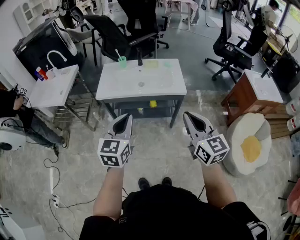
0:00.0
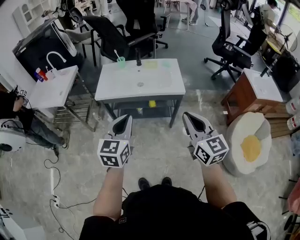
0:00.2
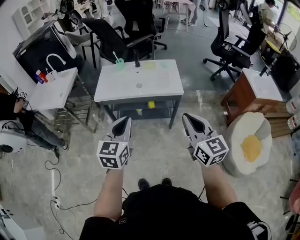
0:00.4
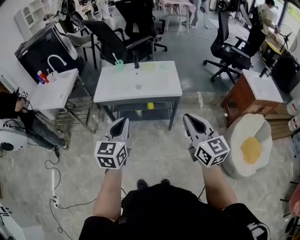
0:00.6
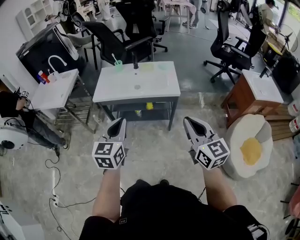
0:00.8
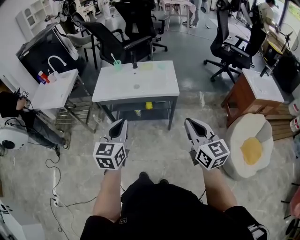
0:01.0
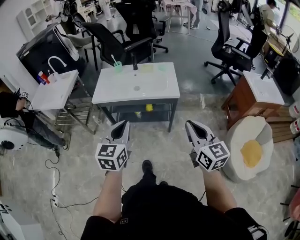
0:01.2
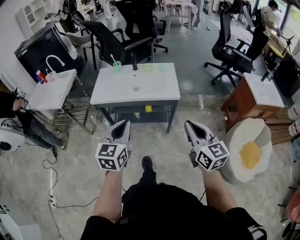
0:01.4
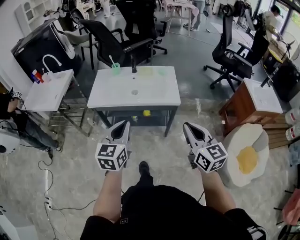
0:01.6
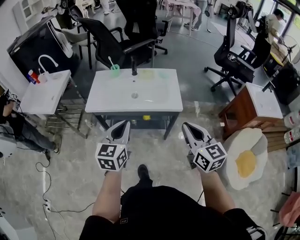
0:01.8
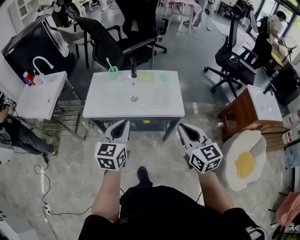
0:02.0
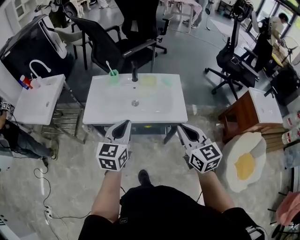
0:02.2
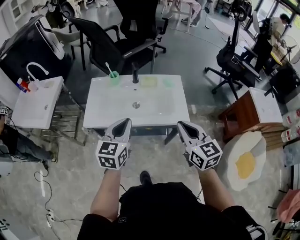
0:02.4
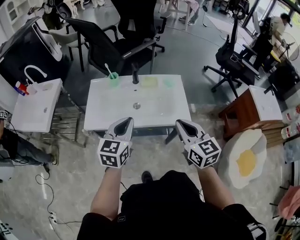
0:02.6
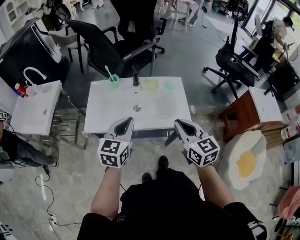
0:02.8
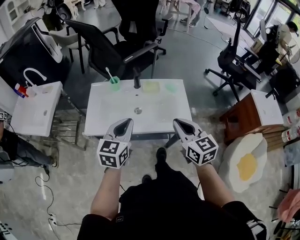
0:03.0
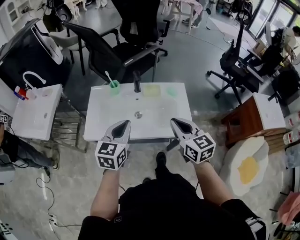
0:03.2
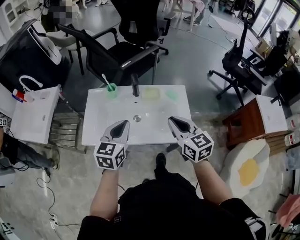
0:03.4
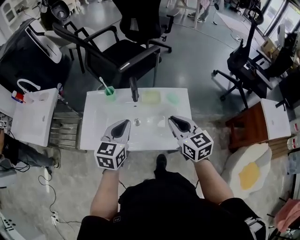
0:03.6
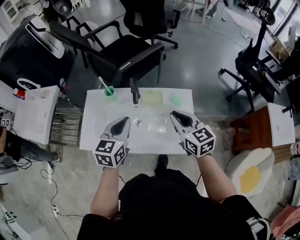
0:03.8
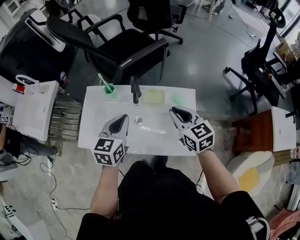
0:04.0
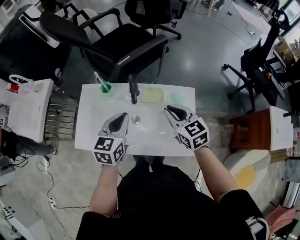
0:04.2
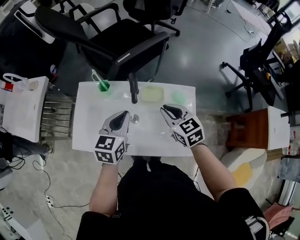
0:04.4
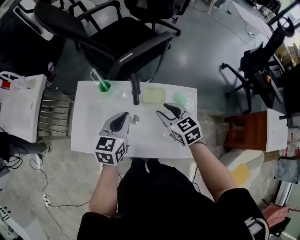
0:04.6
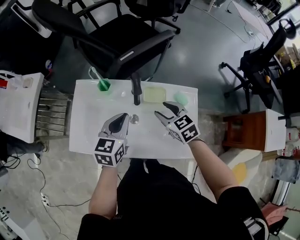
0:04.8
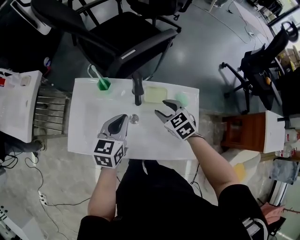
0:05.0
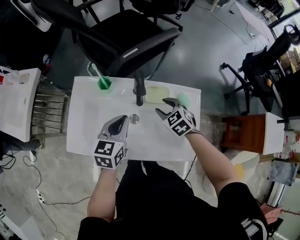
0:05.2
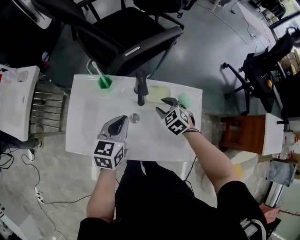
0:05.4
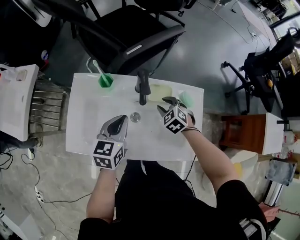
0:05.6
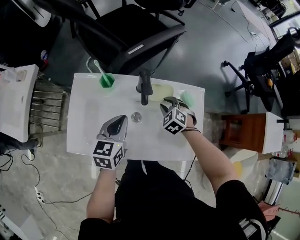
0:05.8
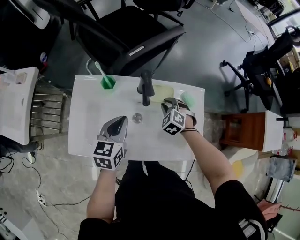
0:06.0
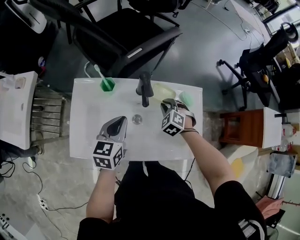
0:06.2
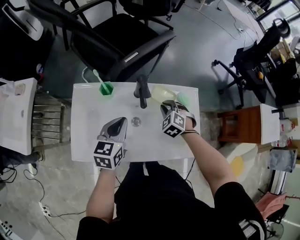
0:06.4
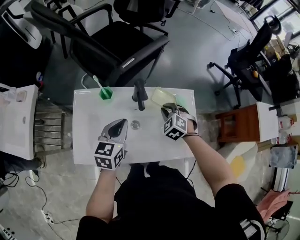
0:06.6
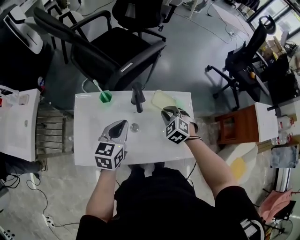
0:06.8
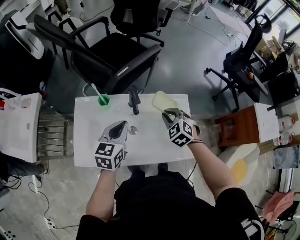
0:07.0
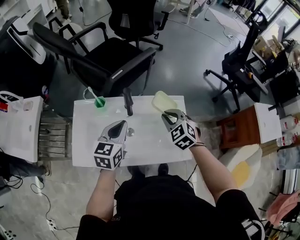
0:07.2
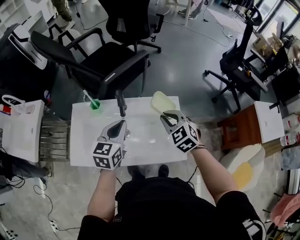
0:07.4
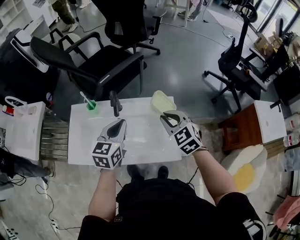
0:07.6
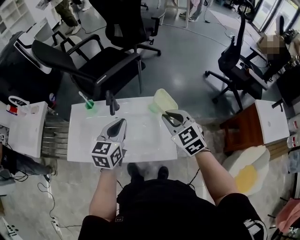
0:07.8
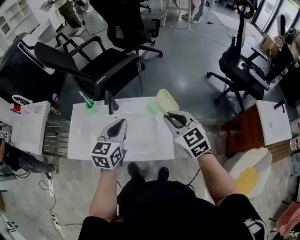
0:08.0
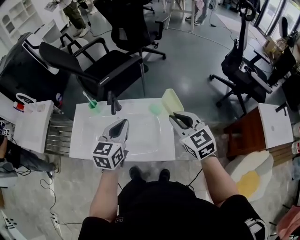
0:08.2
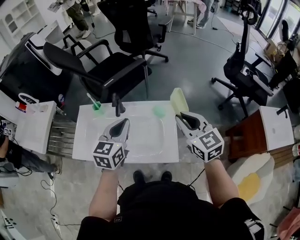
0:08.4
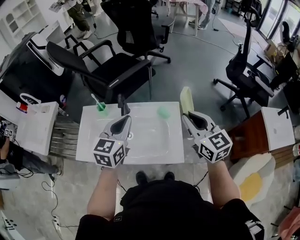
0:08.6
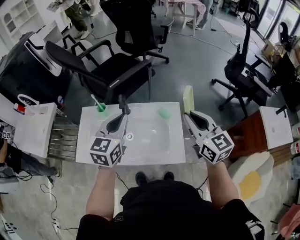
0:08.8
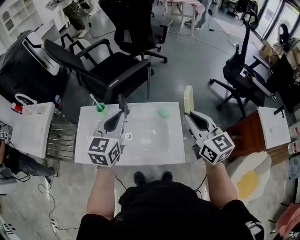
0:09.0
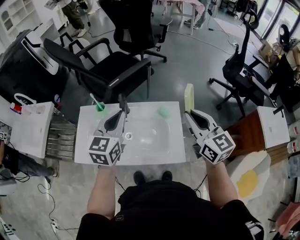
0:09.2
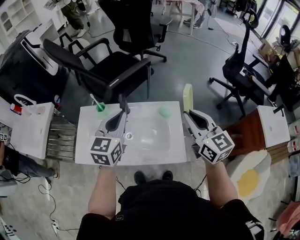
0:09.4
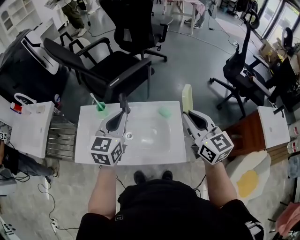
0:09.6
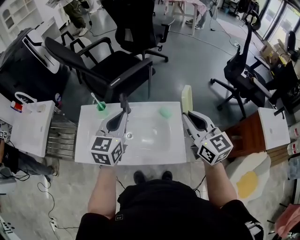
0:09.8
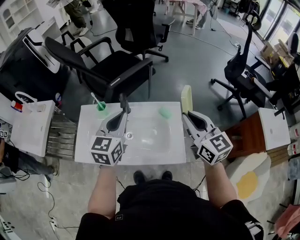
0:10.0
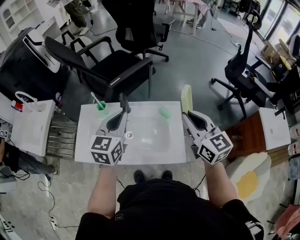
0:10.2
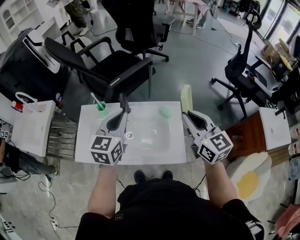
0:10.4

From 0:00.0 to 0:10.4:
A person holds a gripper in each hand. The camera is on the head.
From 0:00.0 to 0:01.4: Both grippers travel together to the right, roughly 5 cm.
From 0:01.4 to 0:03.0: Both grippers move forward, some 30 cm.
From 0:03.0 to 0:04.4: The left gripper goes some 20 cm forward, while the right gripper is displaced forward and downward by approximately 30 cm, and swivels some 20 degrees.
From 0:04.4 to 0:06.0: The left gripper moves downward and to the left, some 10 cm. The right gripper heads downward, covering roughly 20 cm, turns by roughly 50 degrees, and opens up.
From 0:06.0 to 0:07.4: The left gripper travels upward and to the right by some 15 cm. Meanwhile the right gripper goes roughly 20 cm upward, and rotates approximately 30 degrees.
From 0:07.4 to 0:09.0: The right gripper moves upward and to the right, some 20 cm, and angles its fingers upward, by approximately 30 degrees. Meanwhile the left gripper heads upward, covering about 10 cm.
From 0:09.0 to 0:10.4: There are only small adjustments of the grippers.

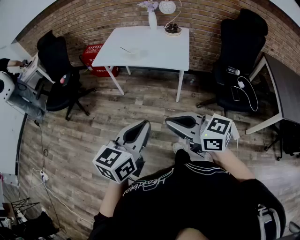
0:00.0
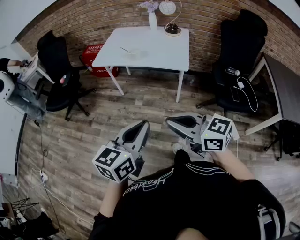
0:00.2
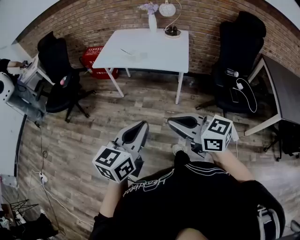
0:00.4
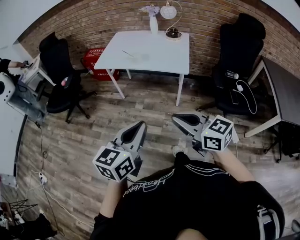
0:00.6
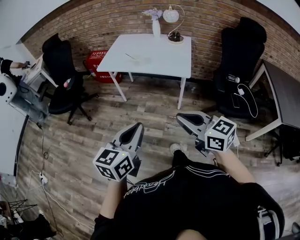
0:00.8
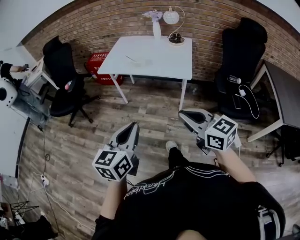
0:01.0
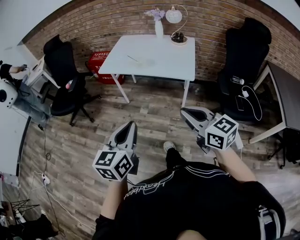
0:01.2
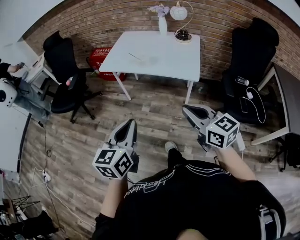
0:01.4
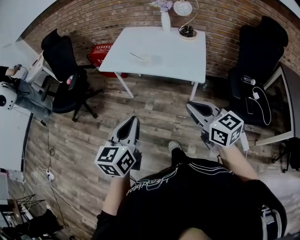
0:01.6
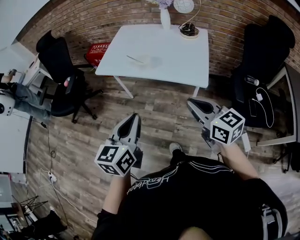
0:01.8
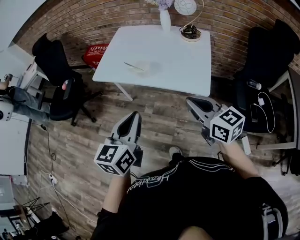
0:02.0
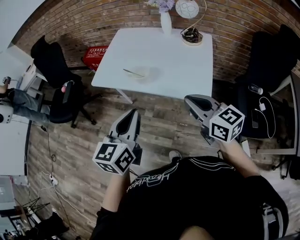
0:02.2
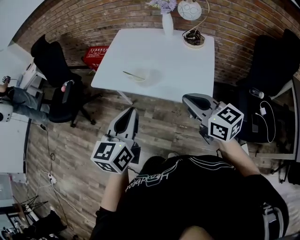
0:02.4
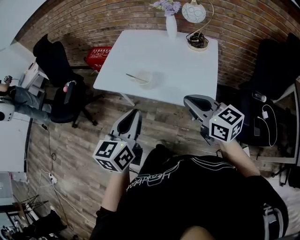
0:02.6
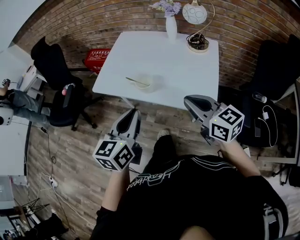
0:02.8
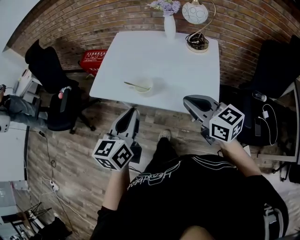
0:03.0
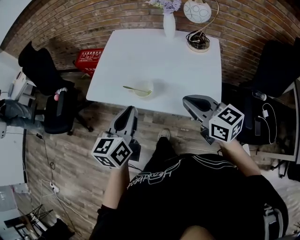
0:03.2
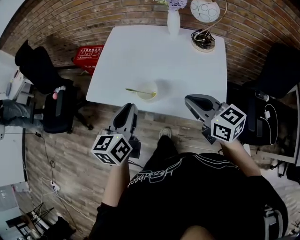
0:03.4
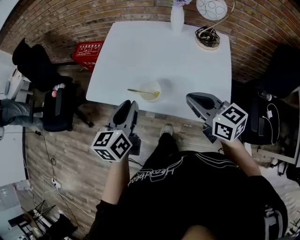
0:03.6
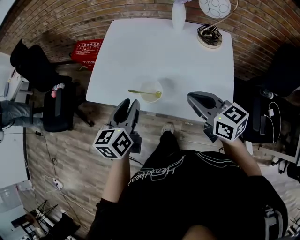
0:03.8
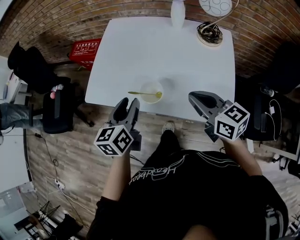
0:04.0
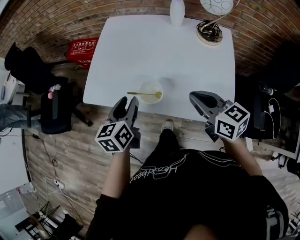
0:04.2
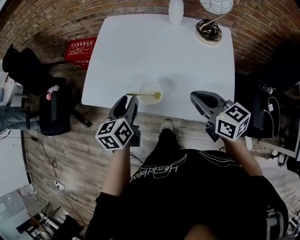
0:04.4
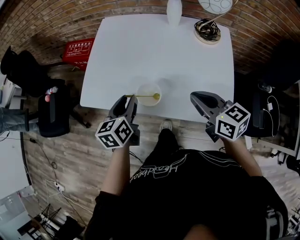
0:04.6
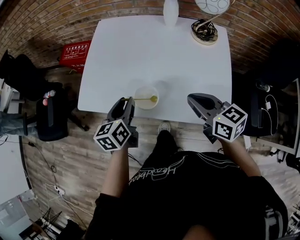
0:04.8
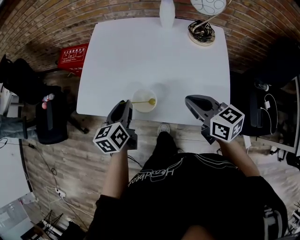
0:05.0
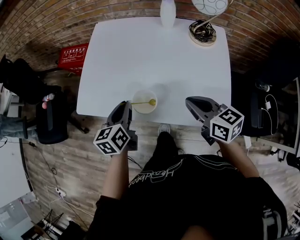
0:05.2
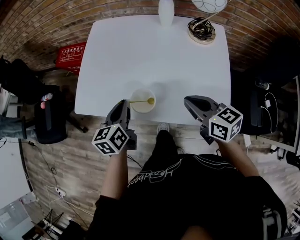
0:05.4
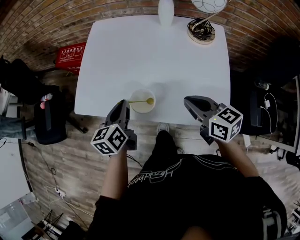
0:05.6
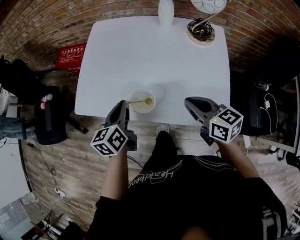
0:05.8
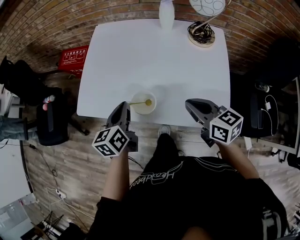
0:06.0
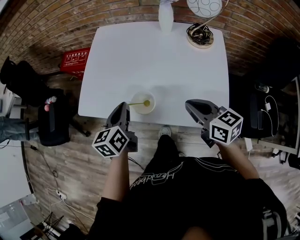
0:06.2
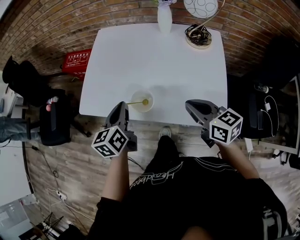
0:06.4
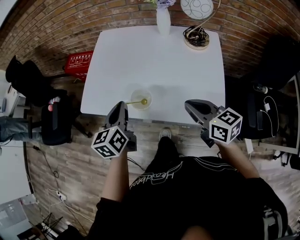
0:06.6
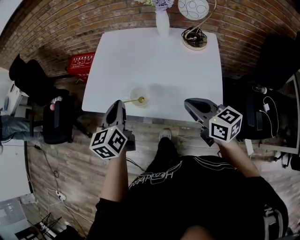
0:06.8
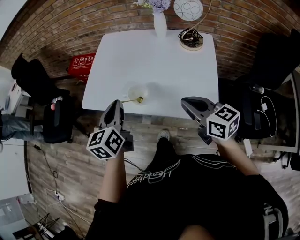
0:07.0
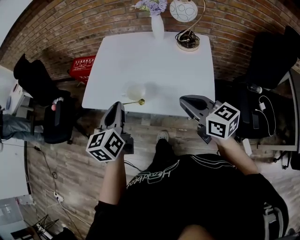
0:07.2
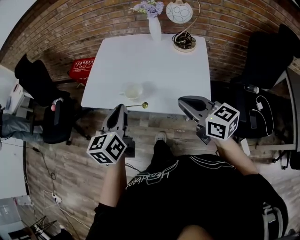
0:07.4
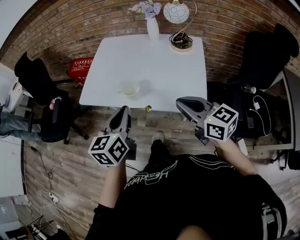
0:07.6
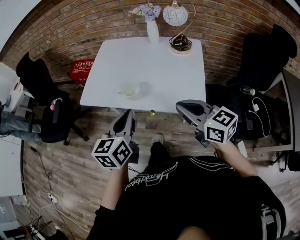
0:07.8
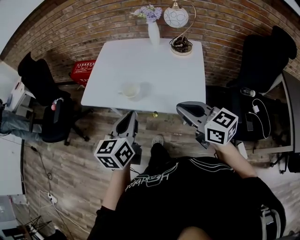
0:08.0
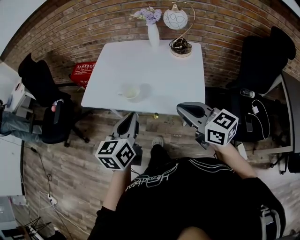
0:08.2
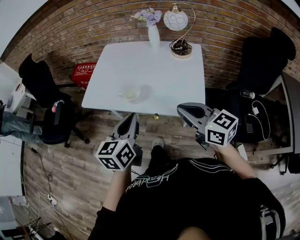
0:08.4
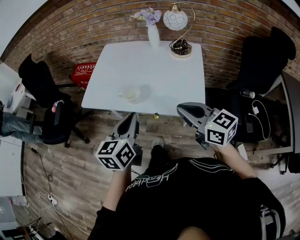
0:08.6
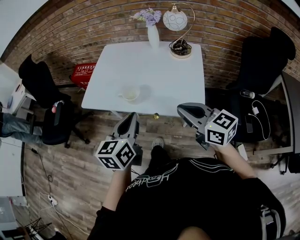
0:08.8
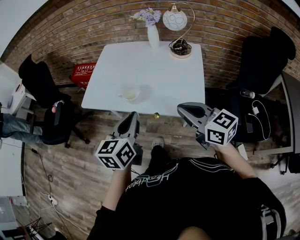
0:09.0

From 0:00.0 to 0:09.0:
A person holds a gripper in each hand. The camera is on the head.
From 0:00.0 to 0:01.6: The left gripper heads forward, covering approximately 15 cm. The right gripper goes roughly 20 cm forward and to the right.
From 0:01.6 to 0:03.0: Both grippers move forward, roughly 30 cm.
From 0:03.0 to 0:04.4: The right gripper shifts roughly 15 cm forward and downward. The left gripper heads forward and downward, covering approximately 25 cm, and opens up.
From 0:04.4 to 0:06.0: The left gripper closes its fingers.
From 0:06.0 to 0:07.6: The two grippers go some 20 cm backward and upward.
From 0:07.6 to 0:09.0: The grippers stay close to where they were, moving slightly.

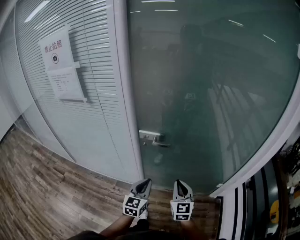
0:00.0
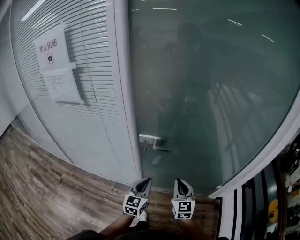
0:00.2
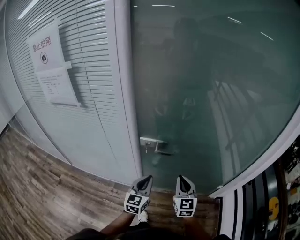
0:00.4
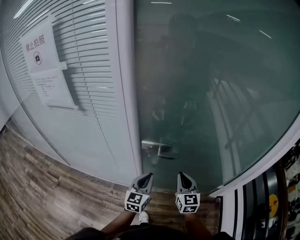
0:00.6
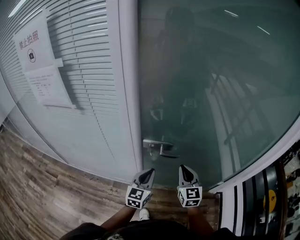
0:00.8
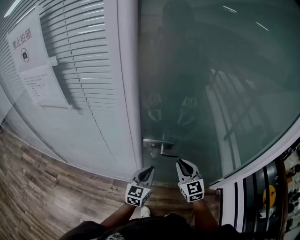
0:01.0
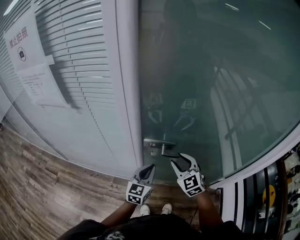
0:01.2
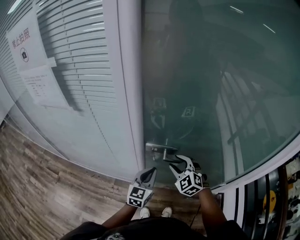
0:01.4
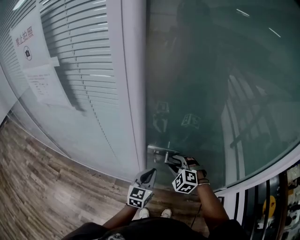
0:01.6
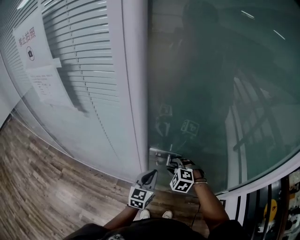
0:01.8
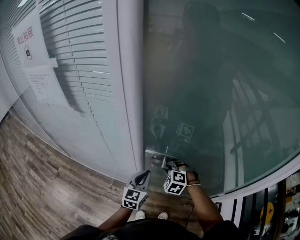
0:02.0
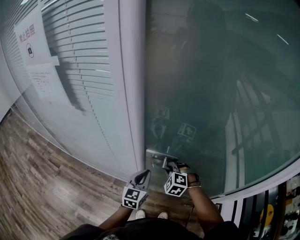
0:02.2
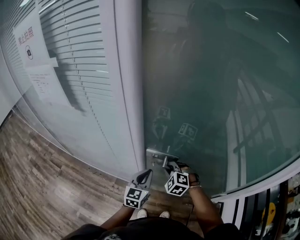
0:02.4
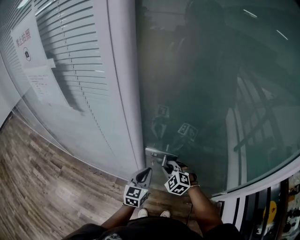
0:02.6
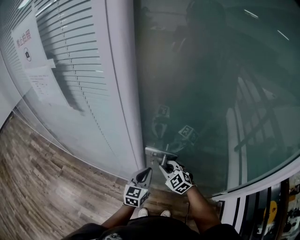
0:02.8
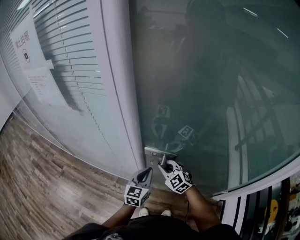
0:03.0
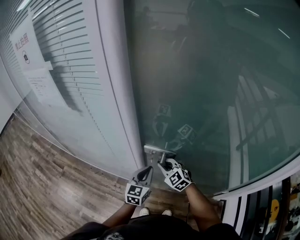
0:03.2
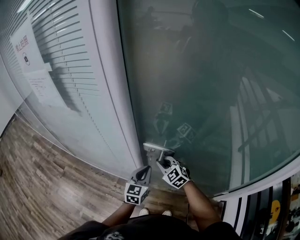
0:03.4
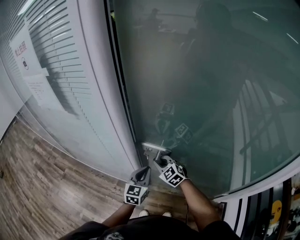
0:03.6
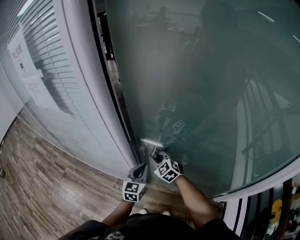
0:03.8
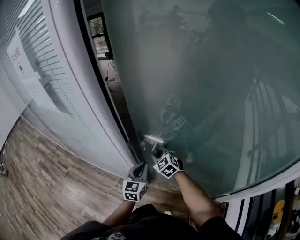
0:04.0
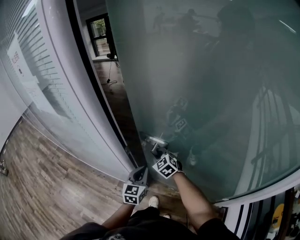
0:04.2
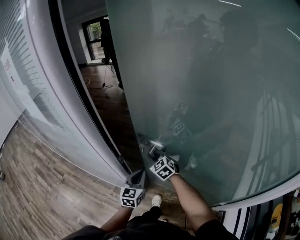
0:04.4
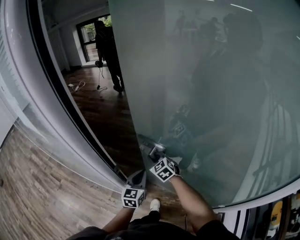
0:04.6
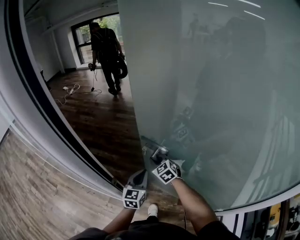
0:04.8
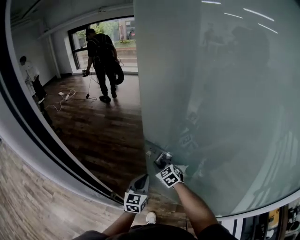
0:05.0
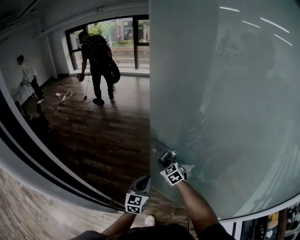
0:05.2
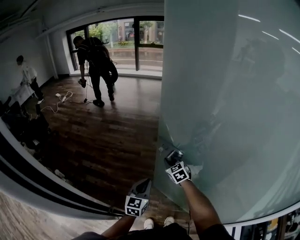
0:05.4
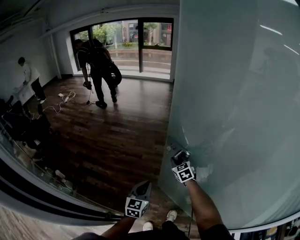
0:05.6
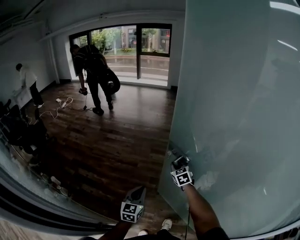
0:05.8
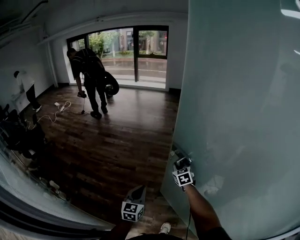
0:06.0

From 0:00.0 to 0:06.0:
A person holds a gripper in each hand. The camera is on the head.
From 0:00.0 to 0:01.6: The right gripper goes roughly 30 cm forward and to the left, tips its fingers downward by roughly 40 degrees, and opens; the left gripper moves forward, about 20 cm.
From 0:01.6 to 0:03.0: The right gripper swivels roughly 30 degrees, and closes its fingers.
From 0:03.0 to 0:04.4: The right gripper travels forward and to the right by approximately 15 cm; the left gripper goes approximately 10 cm to the right and forward.
From 0:04.4 to 0:06.0: The two grippers go roughly 40 cm forward and to the right. The right gripper rotates approximately 30 degrees.
